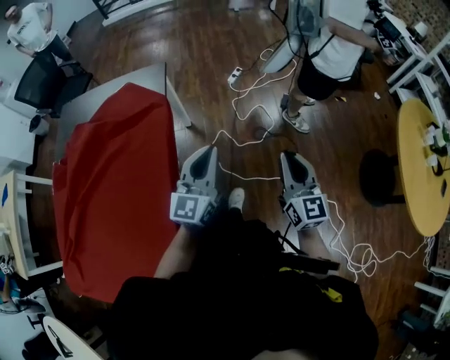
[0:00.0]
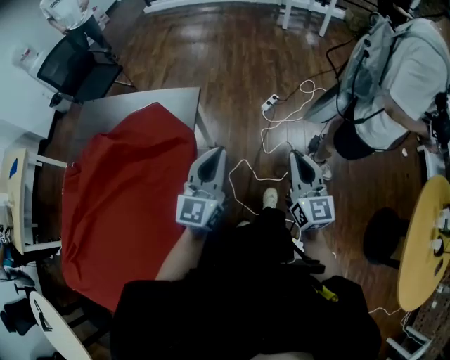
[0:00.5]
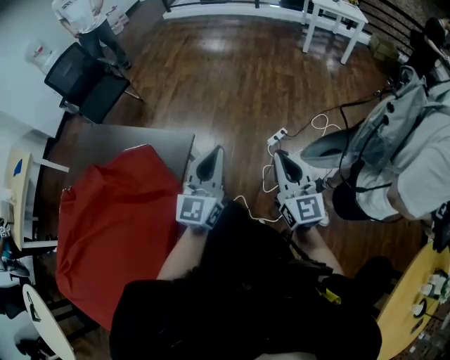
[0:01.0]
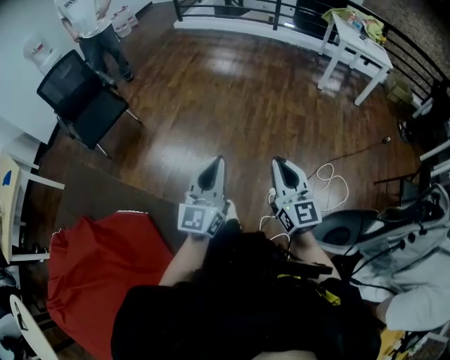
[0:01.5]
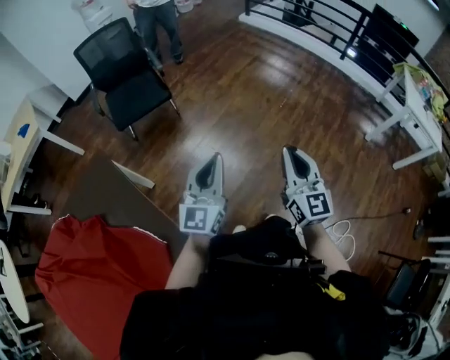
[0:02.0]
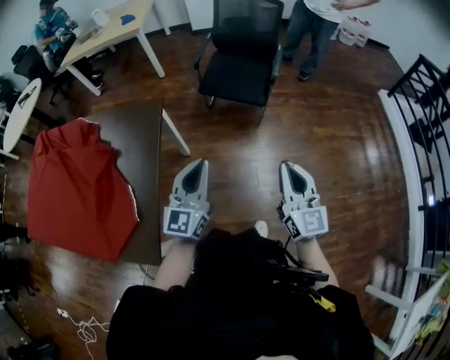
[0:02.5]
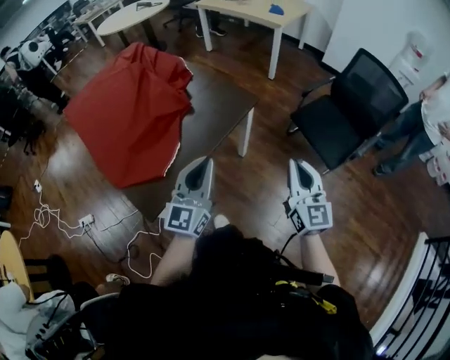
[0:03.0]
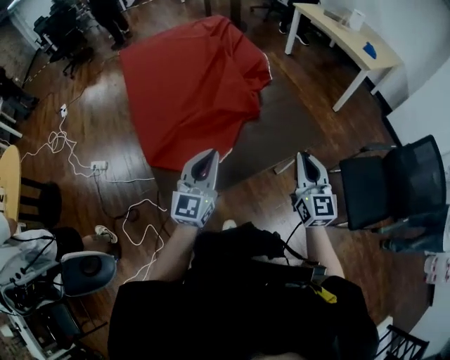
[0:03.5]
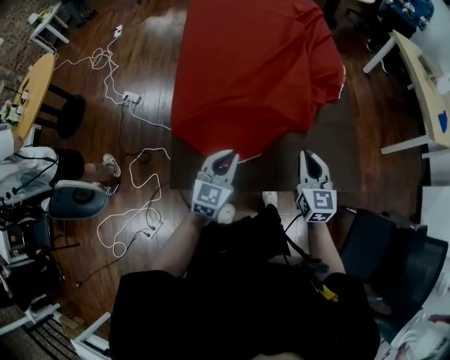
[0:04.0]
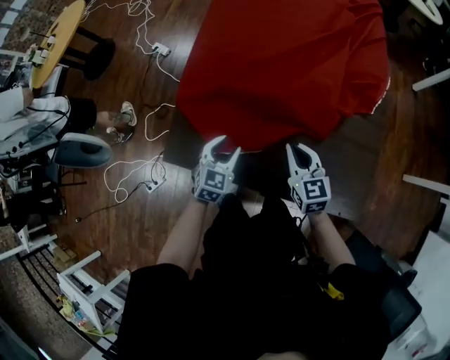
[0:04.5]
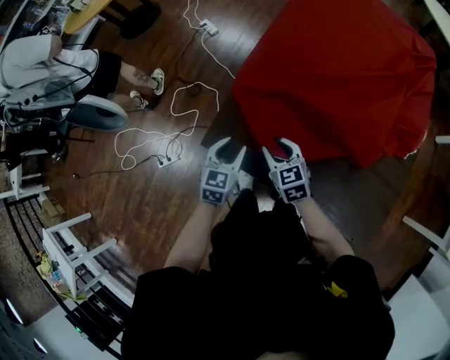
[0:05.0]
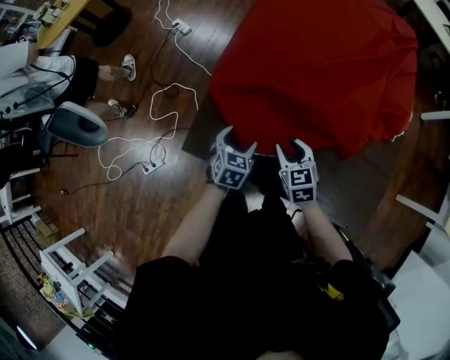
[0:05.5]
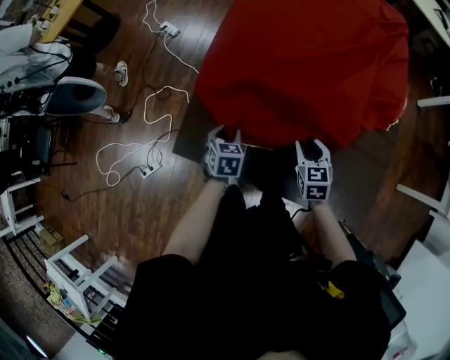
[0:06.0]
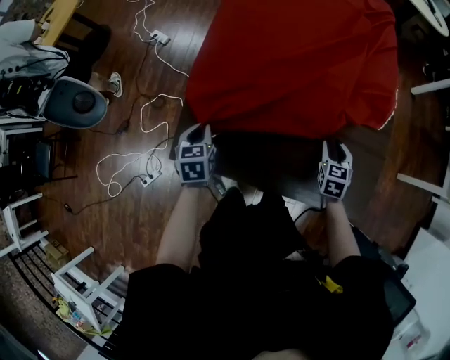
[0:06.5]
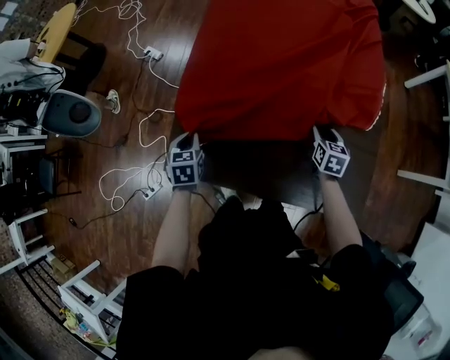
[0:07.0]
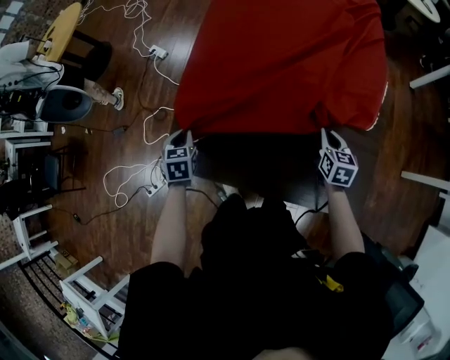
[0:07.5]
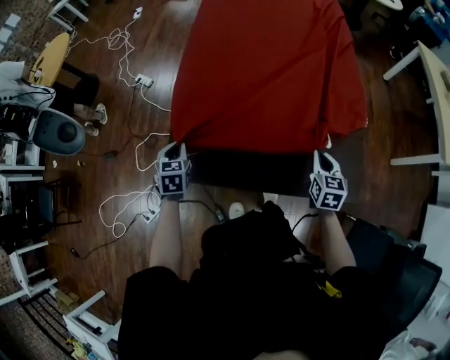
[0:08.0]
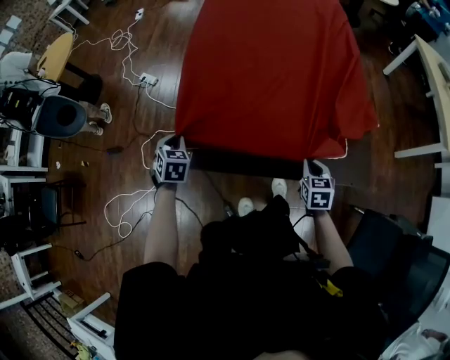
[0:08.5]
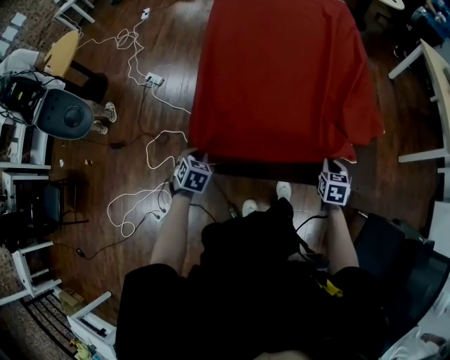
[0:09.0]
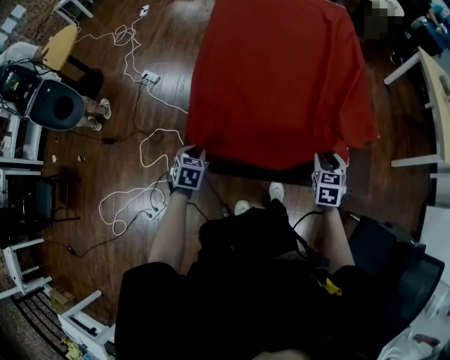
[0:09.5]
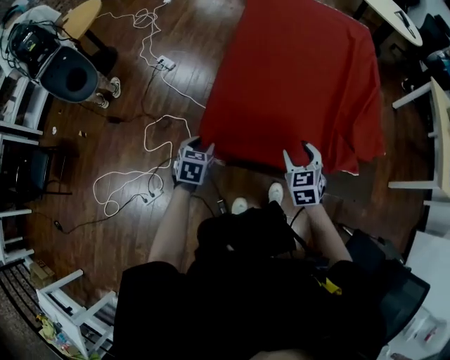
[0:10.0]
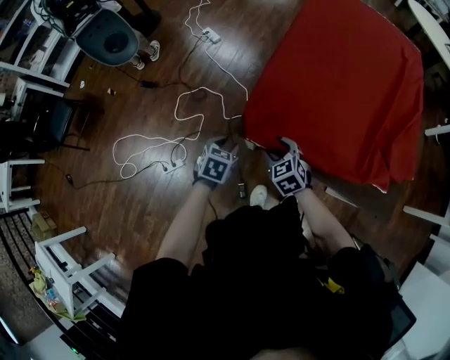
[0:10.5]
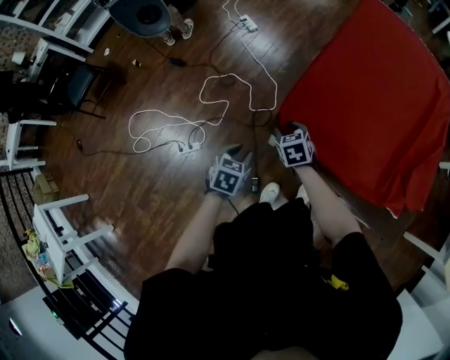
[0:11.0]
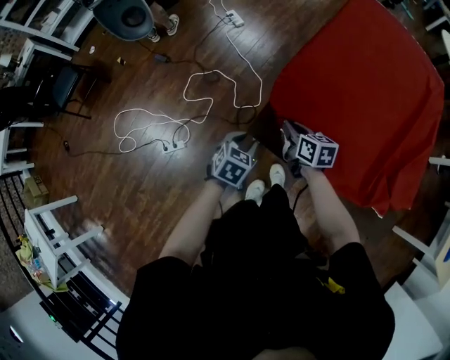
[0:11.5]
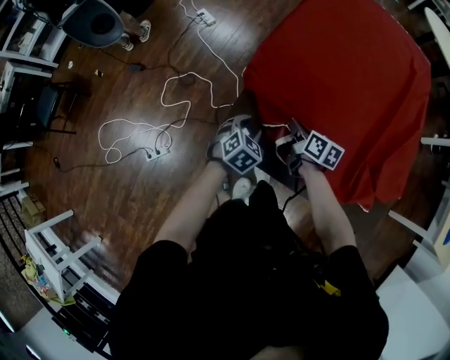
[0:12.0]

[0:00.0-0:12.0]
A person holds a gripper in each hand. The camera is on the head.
0:00.0 to 0:02.0: The two grippers travel together, approximately 1 m. The left gripper turns by roughly 50 degrees. Meanwhile the right gripper rotates some 50 degrees.
0:02.0 to 0:04.0: The pair of grippers is taken approximately 50 cm. The left gripper rotates approximately 130 degrees, while the right gripper turns by about 130 degrees.
0:04.0 to 0:06.0: The two grippers go approximately 15 cm downward. The right gripper rotates some 30 degrees, and opens its fingers. Meanwhile the left gripper tilts its fingers approximately 40 degrees downward, and opens up.
0:06.0 to 0:08.0: The right gripper shifts approximately 15 cm to the right, backward and upward, swivels some 30 degrees, and closes up; the left gripper heads upward and to the left, covering approximately 15 cm, and closes.
0:08.0 to 0:10.0: The right gripper moves left and right over approximately 20 cm, changing direction 2 times, swivels roughly 30 degrees, and opens. Meanwhile the left gripper shifts approximately 10 cm backward, and opens its fingers.
0:10.0 to 0:12.0: The right gripper twists some 50 degrees clockwise, seen from behind, and closes its fingers.

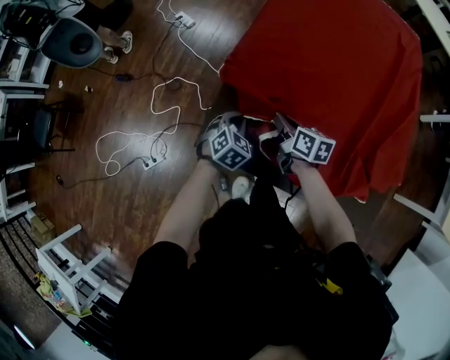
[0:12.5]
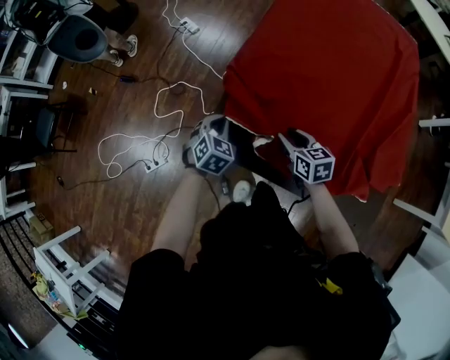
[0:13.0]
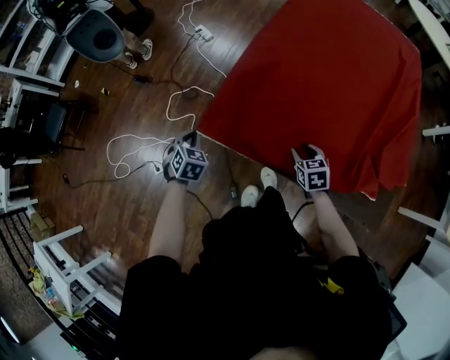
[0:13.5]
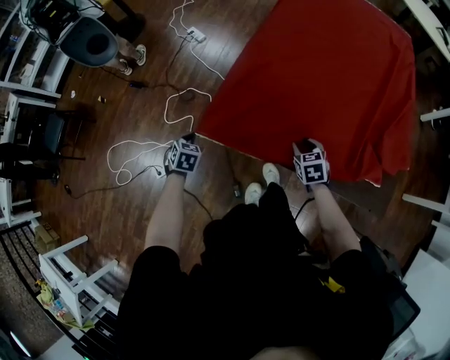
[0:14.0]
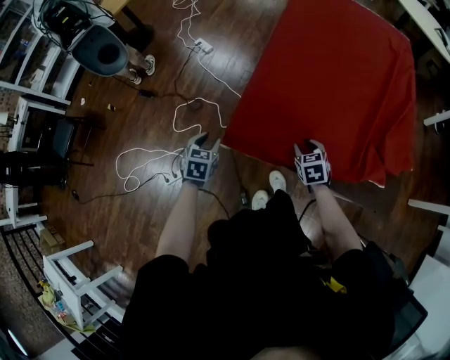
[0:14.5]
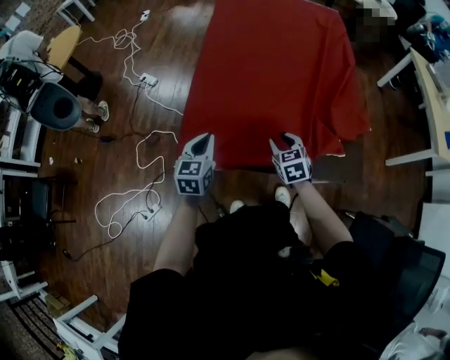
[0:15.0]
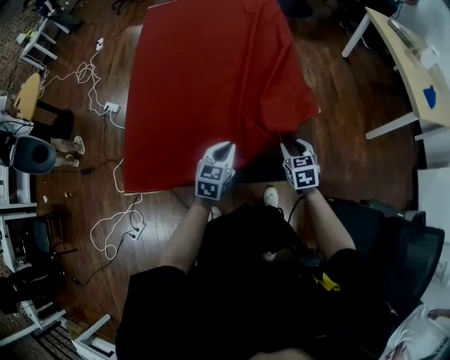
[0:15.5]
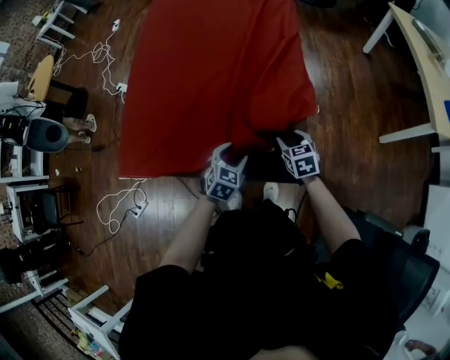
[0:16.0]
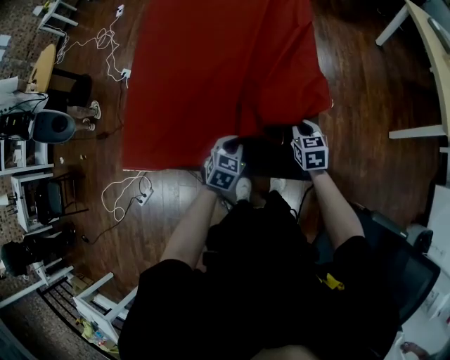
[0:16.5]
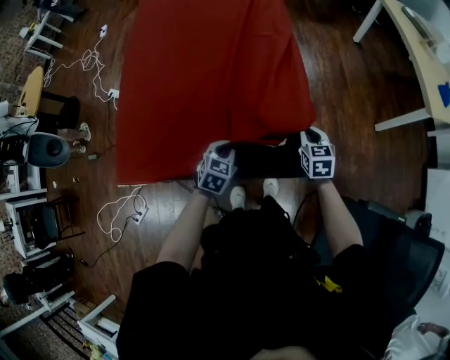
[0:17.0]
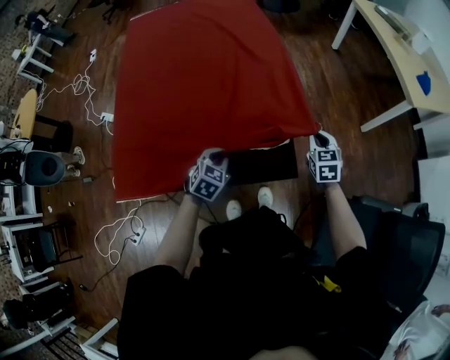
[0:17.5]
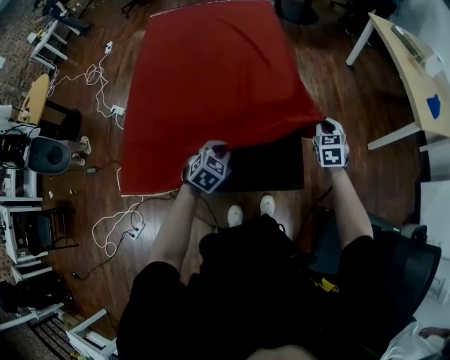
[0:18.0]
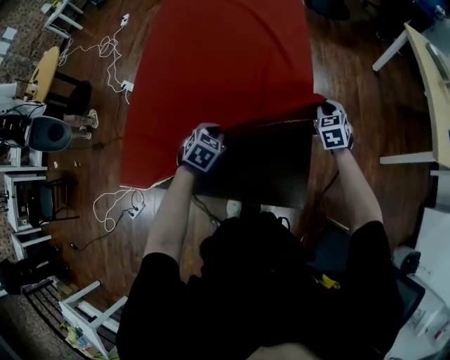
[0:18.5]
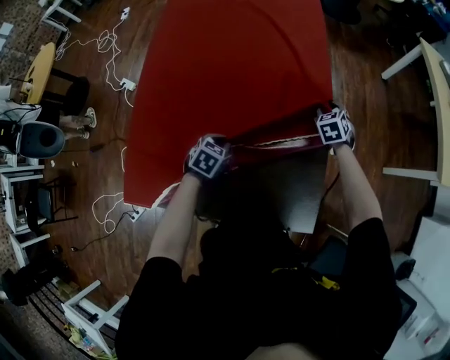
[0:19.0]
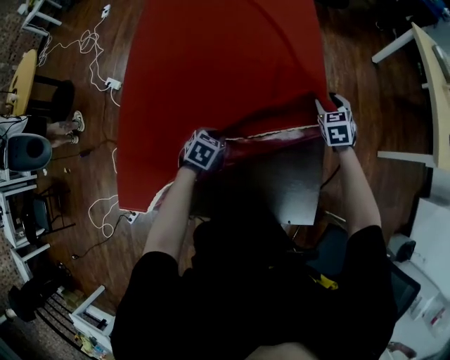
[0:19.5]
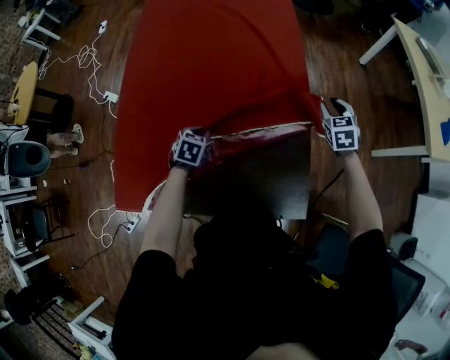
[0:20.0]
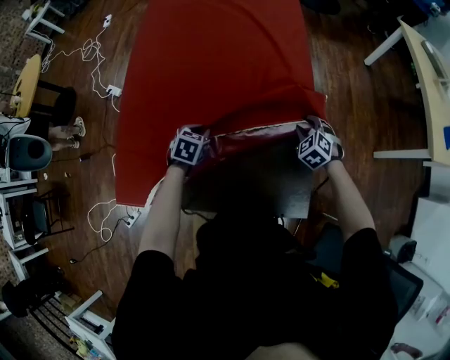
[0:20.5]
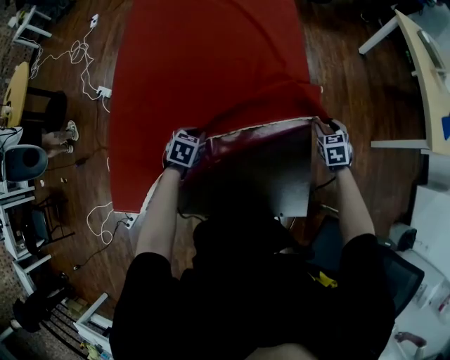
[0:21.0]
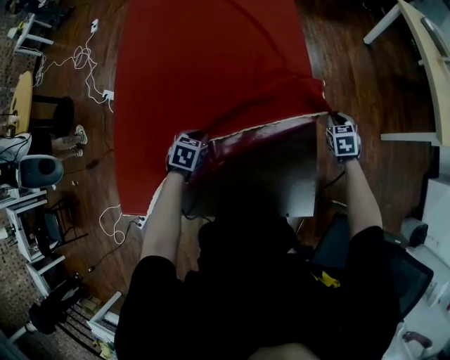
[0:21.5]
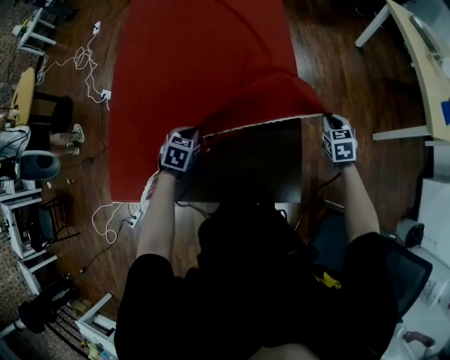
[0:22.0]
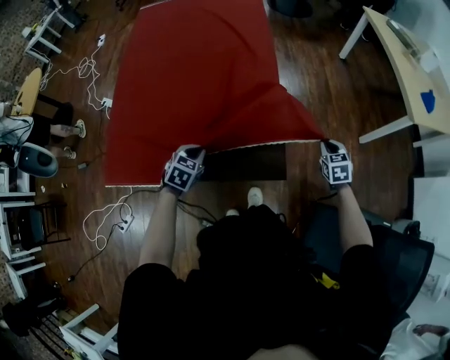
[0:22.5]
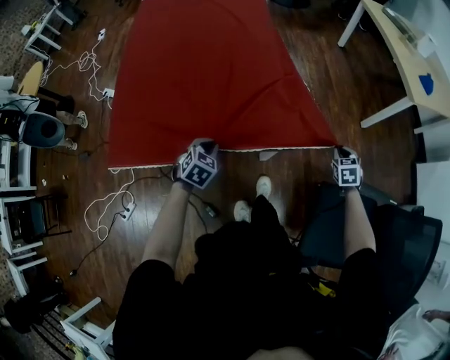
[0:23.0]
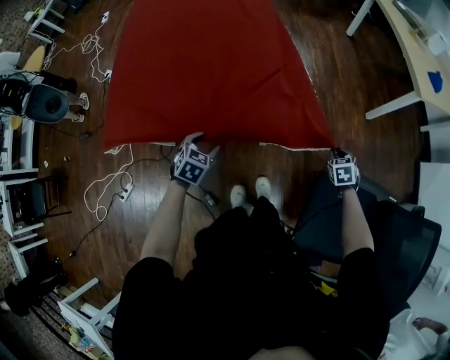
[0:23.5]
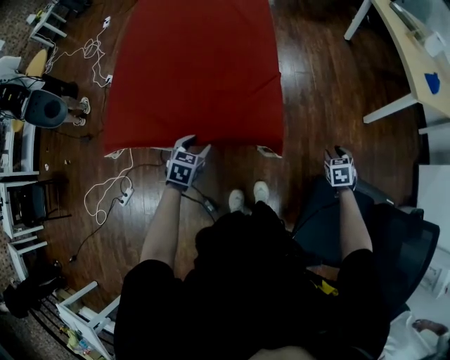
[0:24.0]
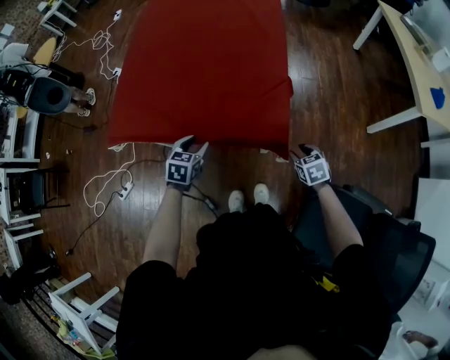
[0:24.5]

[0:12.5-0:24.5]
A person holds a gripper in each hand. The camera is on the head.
0:12.5 to 0:14.5: The left gripper heads to the left, covering roughly 20 cm, rotates roughly 30 degrees, and opens its fingers; the right gripper is displaced backward and downward by roughly 15 cm, changes its angle by approximately 50 degrees, and opens up.
0:14.5 to 0:16.5: The two grippers travel together, some 50 cm. The left gripper changes its angle by roughly 30 degrees, and closes its fingers; the right gripper rotates some 20 degrees, and closes.
0:16.5 to 0:18.5: The left gripper moves forward and to the left, some 10 cm; the right gripper is displaced forward by approximately 20 cm, and rotates about 30 degrees.
0:18.5 to 0:20.5: The right gripper moves to the left, downward and backward, some 10 cm, rotates some 30 degrees, and opens up. Meanwhile the left gripper moves to the left and downward, about 10 cm.
0:20.5 to 0:22.5: The right gripper shifts some 30 cm to the right and backward, twists approximately 40 degrees clockwise, seen from behind, and closes its fingers. Meanwhile the left gripper travels backward and to the right by some 20 cm.
0:22.5 to 0:24.5: The right gripper changes place by roughly 20 cm, turns by roughly 20 degrees, and opens, while the left gripper shifts by some 10 cm, turns by roughly 20 degrees, and opens up.

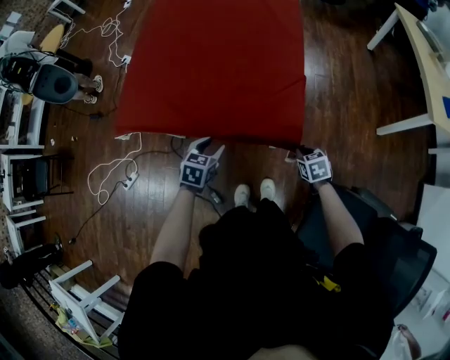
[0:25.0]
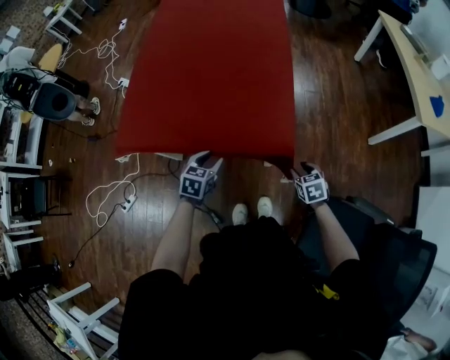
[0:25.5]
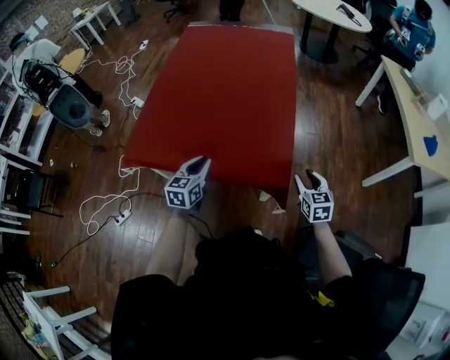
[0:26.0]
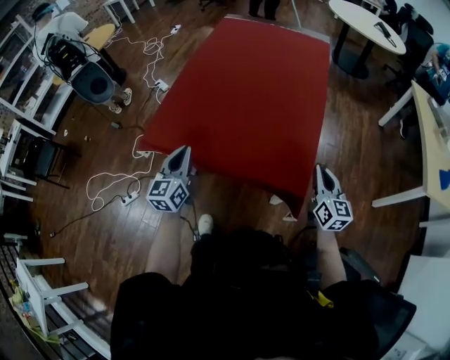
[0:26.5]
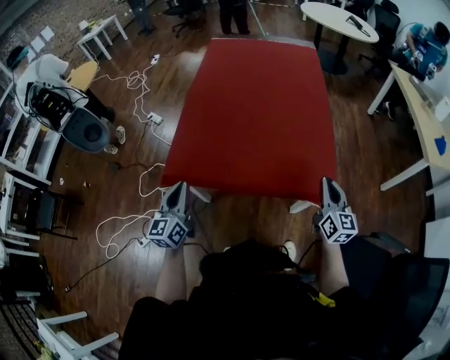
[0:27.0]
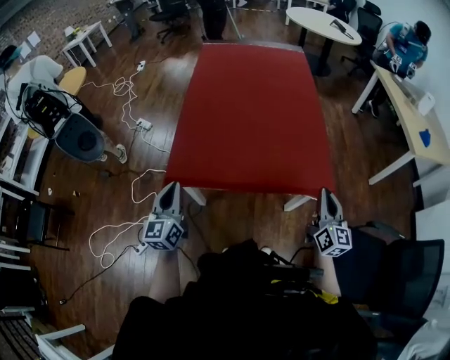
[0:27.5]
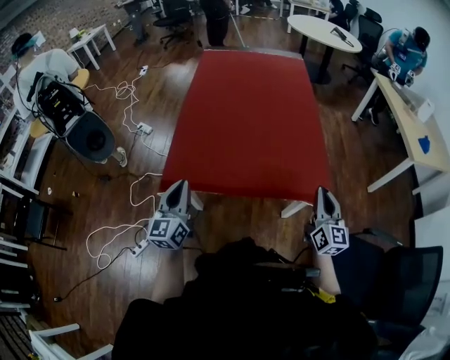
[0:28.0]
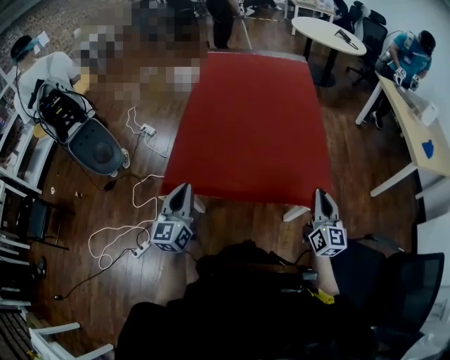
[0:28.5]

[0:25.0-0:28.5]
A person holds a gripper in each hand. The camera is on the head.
0:25.0 to 0:27.0: The right gripper goes approximately 30 cm upward and to the left, tips its fingers upward by some 50 degrees, and opens and closes again; the left gripper is displaced to the left and upward by roughly 35 cm, tips its fingers upward by about 40 degrees, and closes.
0:27.0 to 0:28.5: The right gripper changes place by approximately 5 cm.
